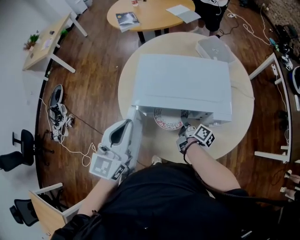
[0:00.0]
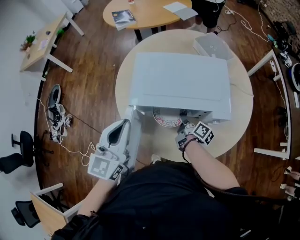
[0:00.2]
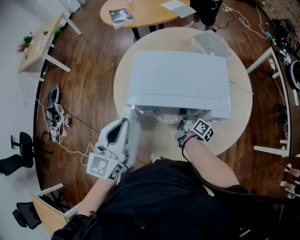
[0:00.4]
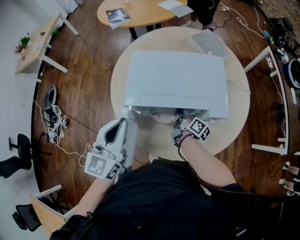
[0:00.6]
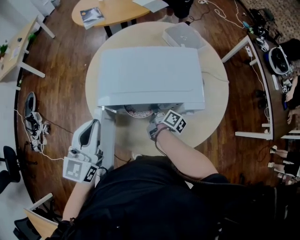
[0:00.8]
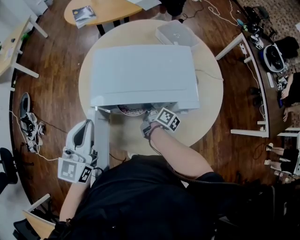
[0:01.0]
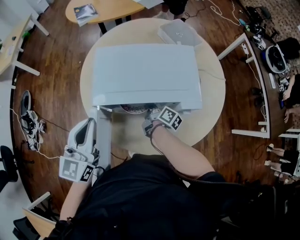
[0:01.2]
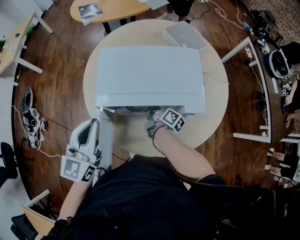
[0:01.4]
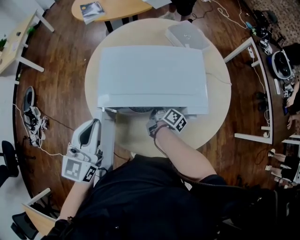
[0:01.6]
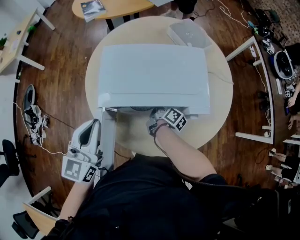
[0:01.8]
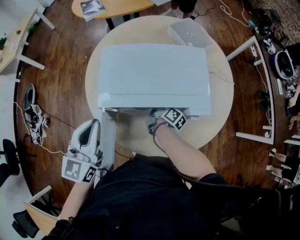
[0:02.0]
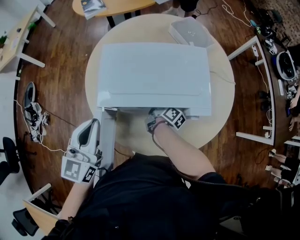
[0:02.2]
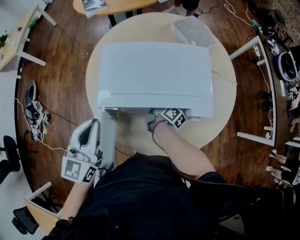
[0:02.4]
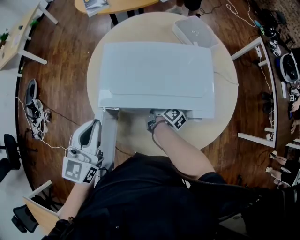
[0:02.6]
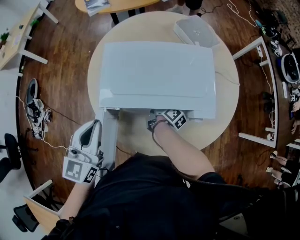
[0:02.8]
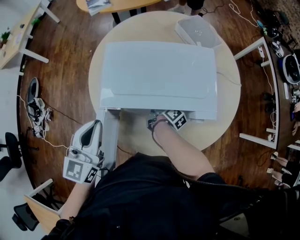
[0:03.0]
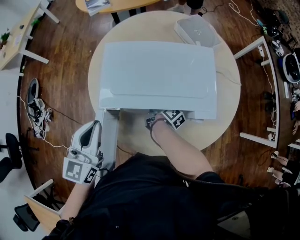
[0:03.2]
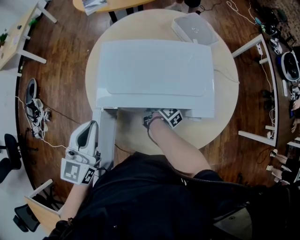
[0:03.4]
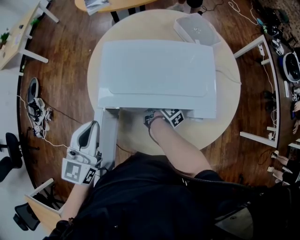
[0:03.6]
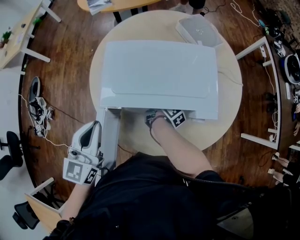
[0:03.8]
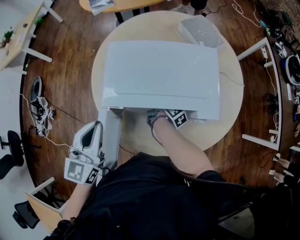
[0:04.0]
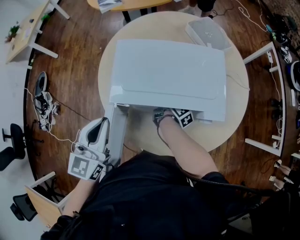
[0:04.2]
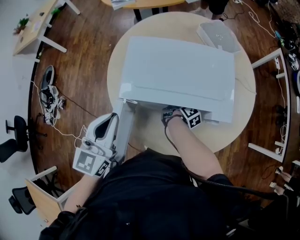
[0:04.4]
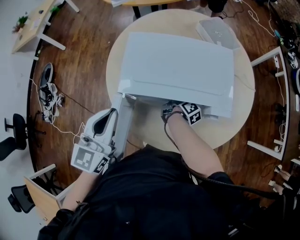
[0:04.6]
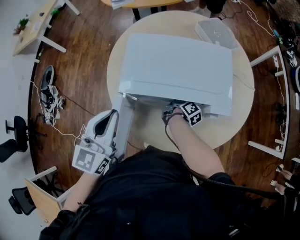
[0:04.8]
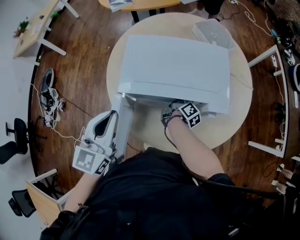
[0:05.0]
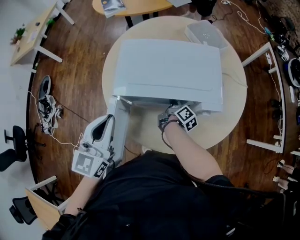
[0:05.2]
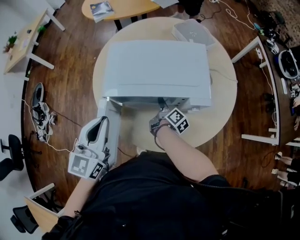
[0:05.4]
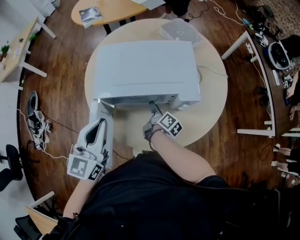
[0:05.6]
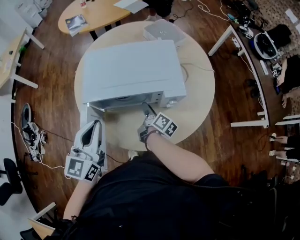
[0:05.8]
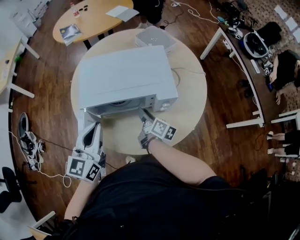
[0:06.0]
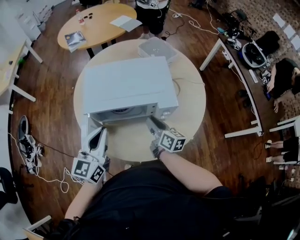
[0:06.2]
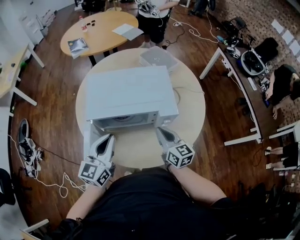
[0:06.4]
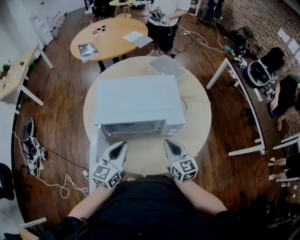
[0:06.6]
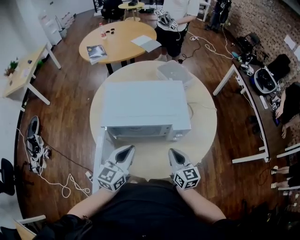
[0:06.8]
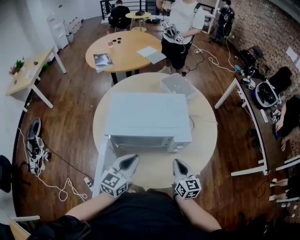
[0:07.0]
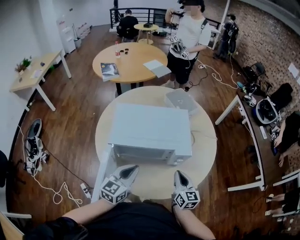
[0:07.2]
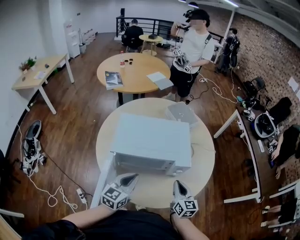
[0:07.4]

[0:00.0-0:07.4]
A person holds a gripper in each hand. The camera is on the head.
0:00.0 to 0:01.4: The grippers make only small movements.
0:01.4 to 0:04.4: There are only small adjustments of the grippers.
0:04.4 to 0:06.0: The left gripper travels to the right by about 10 cm. Meanwhile the right gripper is displaced backward and upward by roughly 15 cm, rotates some 20 degrees, and opens.
0:06.0 to 0:07.4: The right gripper goes some 15 cm to the right, backward and upward, rolls counterclockwise, seen from behind, by roughly 50 degrees, and closes its fingers. The left gripper is displaced downward and to the right by approximately 10 cm.

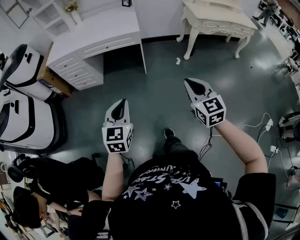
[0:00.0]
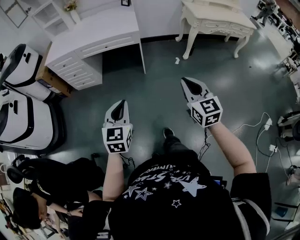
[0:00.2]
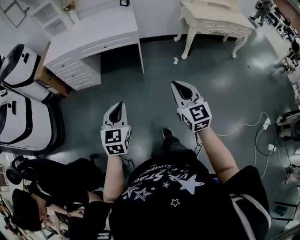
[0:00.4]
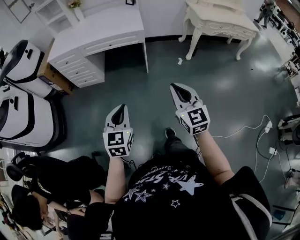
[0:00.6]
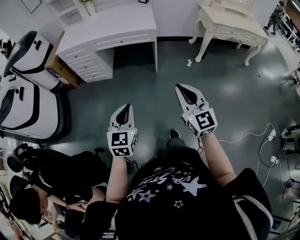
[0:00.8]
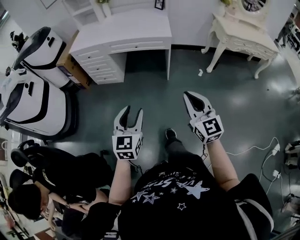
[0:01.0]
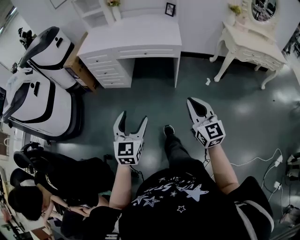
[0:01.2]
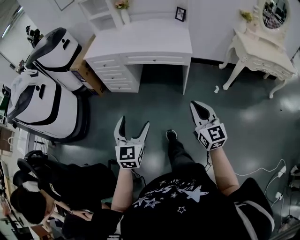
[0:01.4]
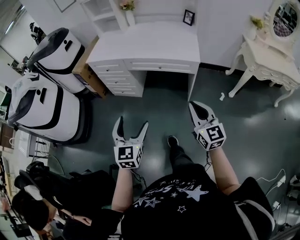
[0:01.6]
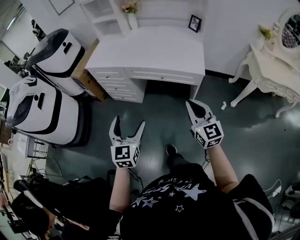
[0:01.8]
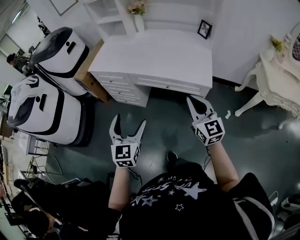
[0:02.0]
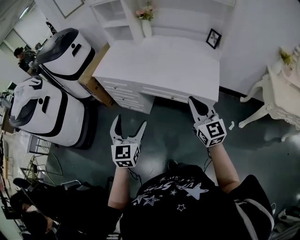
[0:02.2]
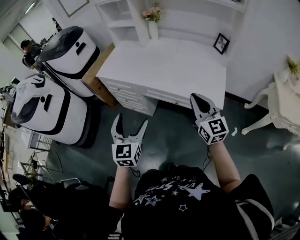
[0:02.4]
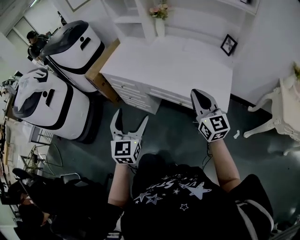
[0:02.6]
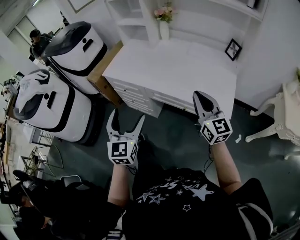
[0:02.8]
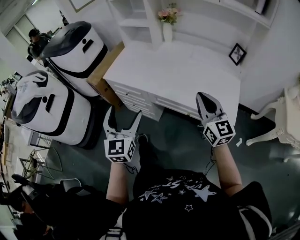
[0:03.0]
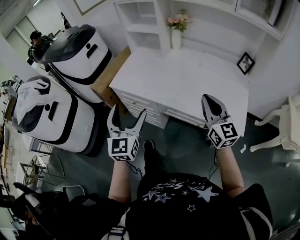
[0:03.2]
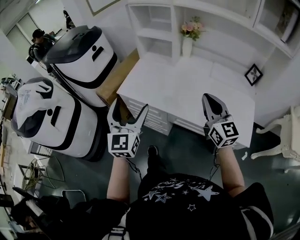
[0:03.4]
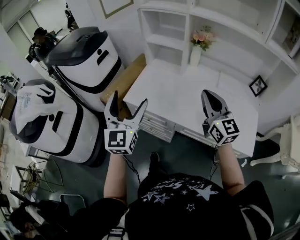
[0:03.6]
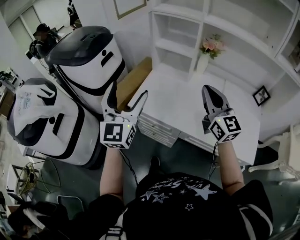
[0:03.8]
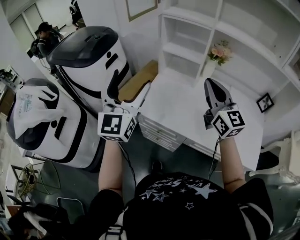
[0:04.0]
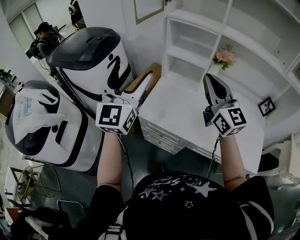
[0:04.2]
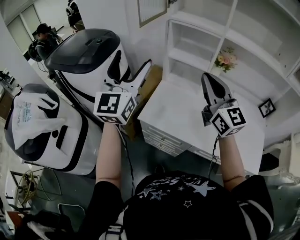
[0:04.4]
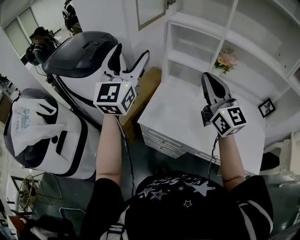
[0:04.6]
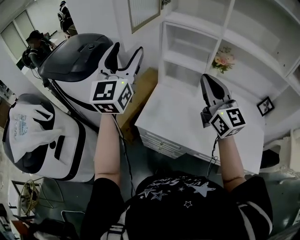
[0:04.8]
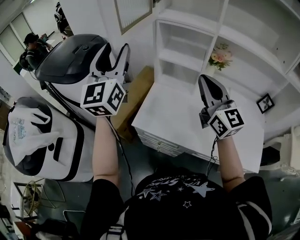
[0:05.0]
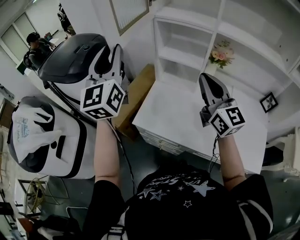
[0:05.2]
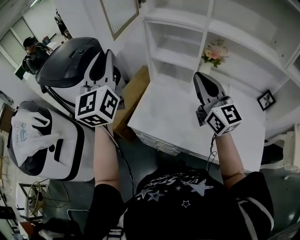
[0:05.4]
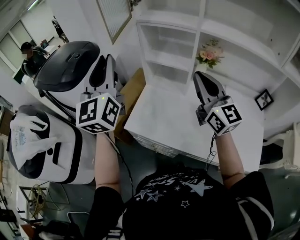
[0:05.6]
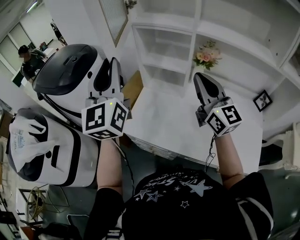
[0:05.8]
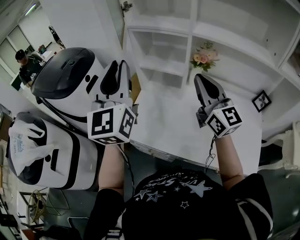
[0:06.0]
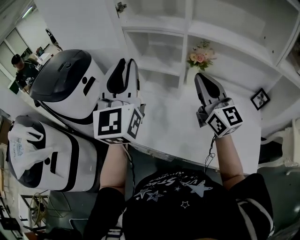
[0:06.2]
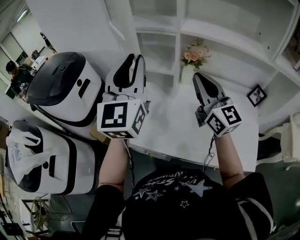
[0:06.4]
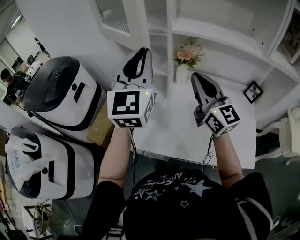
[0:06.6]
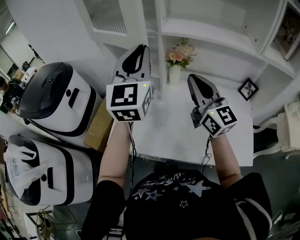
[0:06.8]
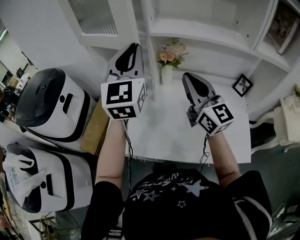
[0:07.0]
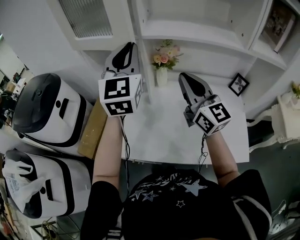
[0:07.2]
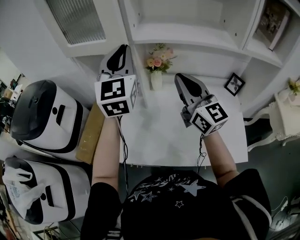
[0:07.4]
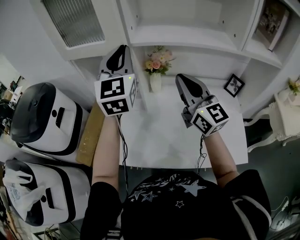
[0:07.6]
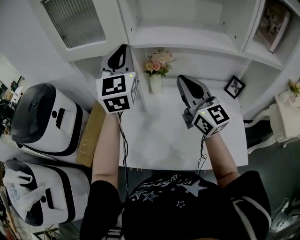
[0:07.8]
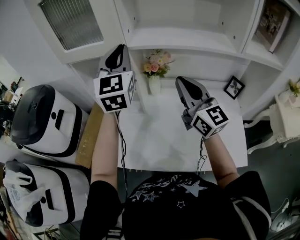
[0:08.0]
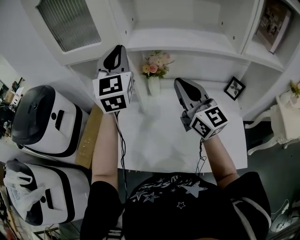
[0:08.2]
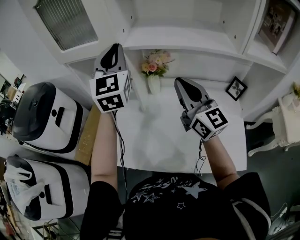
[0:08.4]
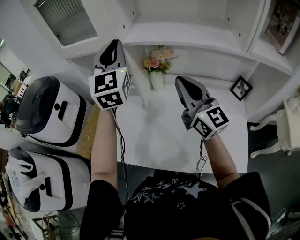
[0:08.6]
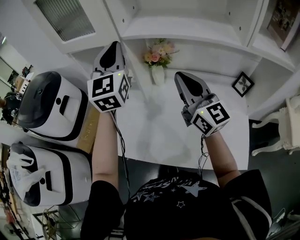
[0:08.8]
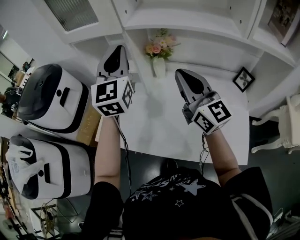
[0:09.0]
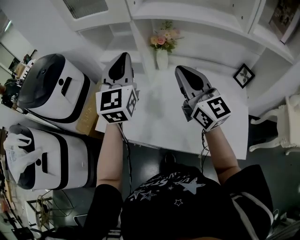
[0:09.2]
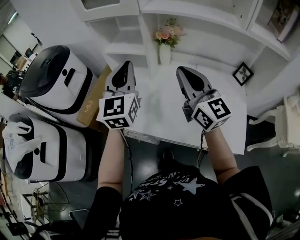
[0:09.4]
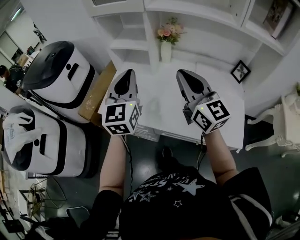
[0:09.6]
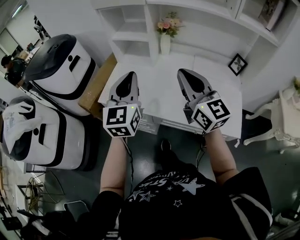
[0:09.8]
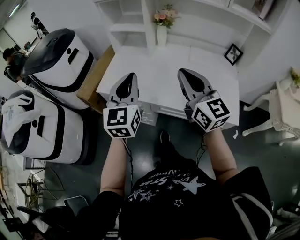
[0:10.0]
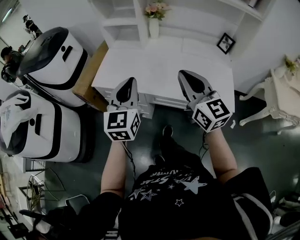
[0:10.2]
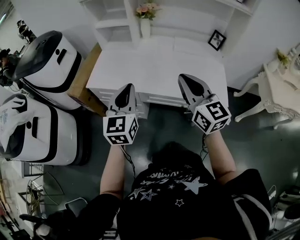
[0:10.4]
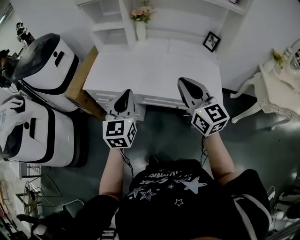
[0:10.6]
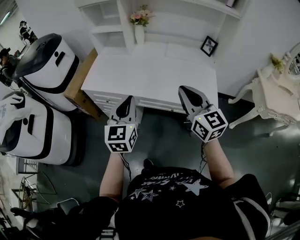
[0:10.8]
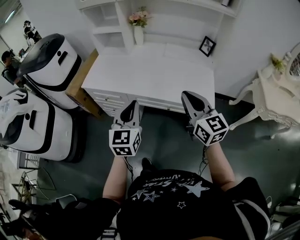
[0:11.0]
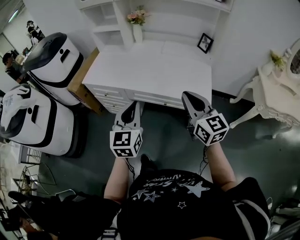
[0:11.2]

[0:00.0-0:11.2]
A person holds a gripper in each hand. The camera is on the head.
0:00.0 to 0:01.6: Both grippers travel together forward and to the left, roughly 30 cm. The right gripper rotates some 20 degrees, while the left gripper opens.
0:01.6 to 0:03.2: The two grippers travel together, forward, approximately 50 cm.
0:03.2 to 0:04.8: The pair of grippers is taken forward and to the left, approximately 40 cm. The two grippers go some 20 cm upward. The left gripper changes its angle by roughly 20 degrees.
0:04.8 to 0:06.4: Both grippers travel together to the right, about 20 cm. The left gripper closes its fingers.
0:06.4 to 0:08.0: The right gripper is displaced to the right by approximately 10 cm. Meanwhile the left gripper moves forward and to the right, roughly 20 cm.
0:08.0 to 0:09.6: The left gripper shifts about 30 cm backward and downward. The right gripper moves backward, approximately 15 cm.
0:09.6 to 0:11.2: The right gripper travels backward and to the right by roughly 40 cm. The left gripper moves backward, approximately 35 cm.

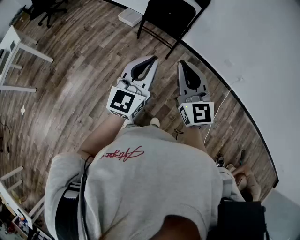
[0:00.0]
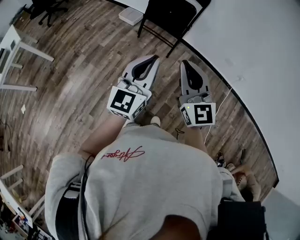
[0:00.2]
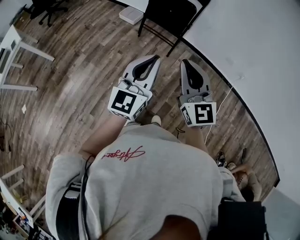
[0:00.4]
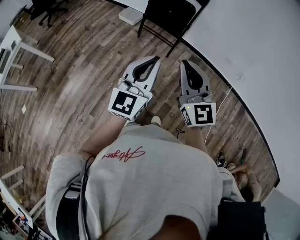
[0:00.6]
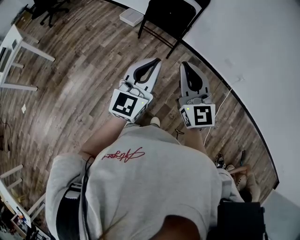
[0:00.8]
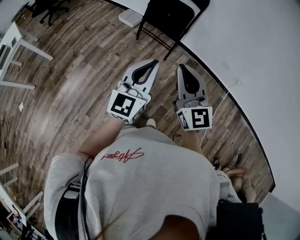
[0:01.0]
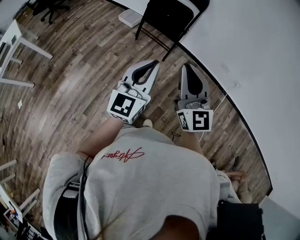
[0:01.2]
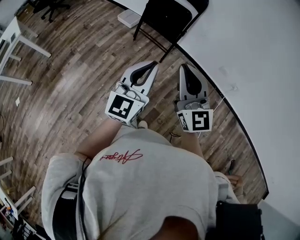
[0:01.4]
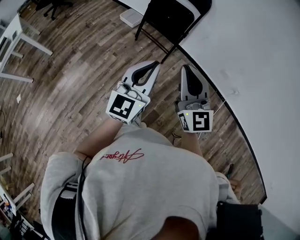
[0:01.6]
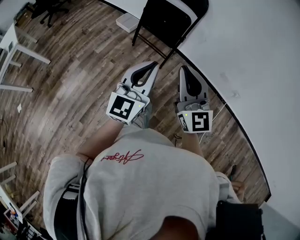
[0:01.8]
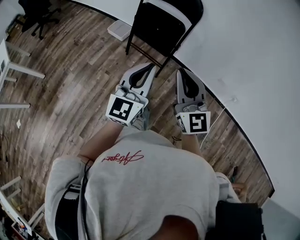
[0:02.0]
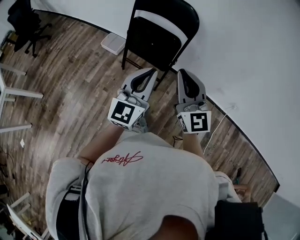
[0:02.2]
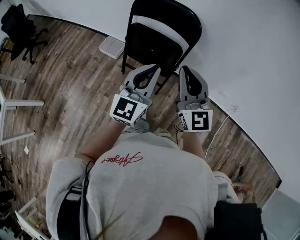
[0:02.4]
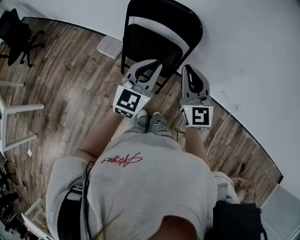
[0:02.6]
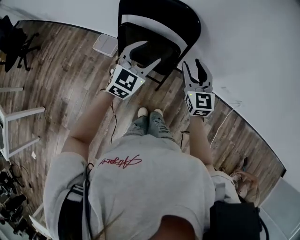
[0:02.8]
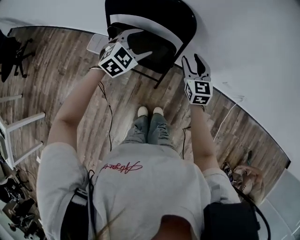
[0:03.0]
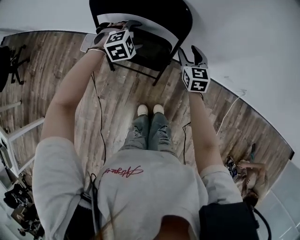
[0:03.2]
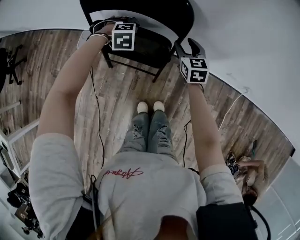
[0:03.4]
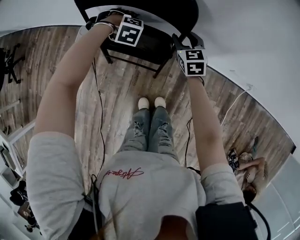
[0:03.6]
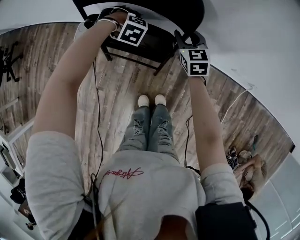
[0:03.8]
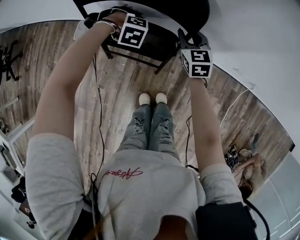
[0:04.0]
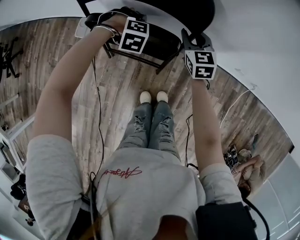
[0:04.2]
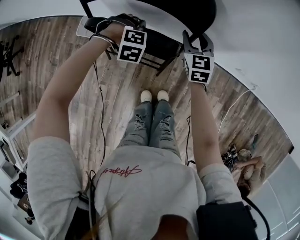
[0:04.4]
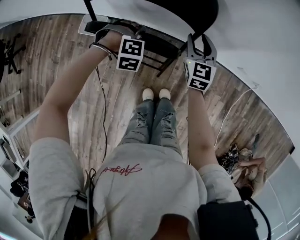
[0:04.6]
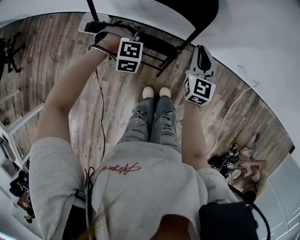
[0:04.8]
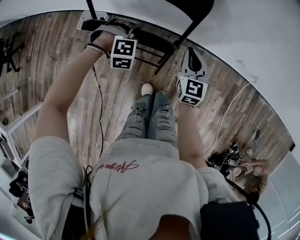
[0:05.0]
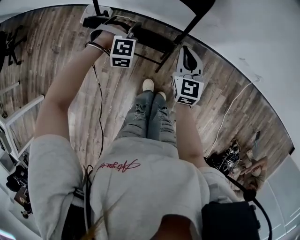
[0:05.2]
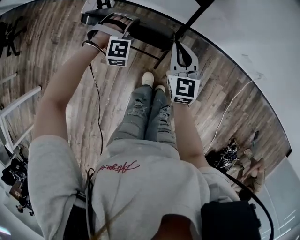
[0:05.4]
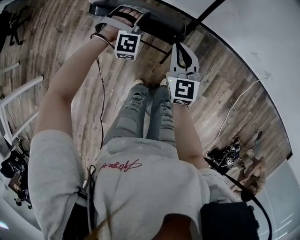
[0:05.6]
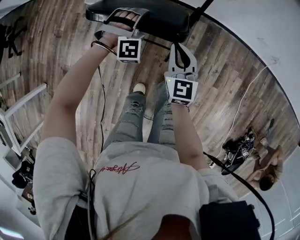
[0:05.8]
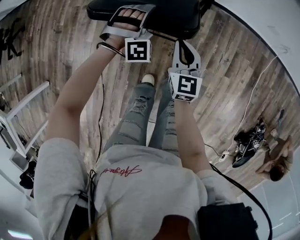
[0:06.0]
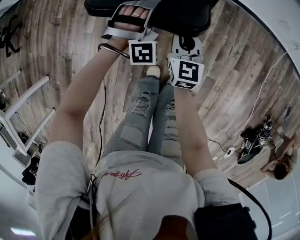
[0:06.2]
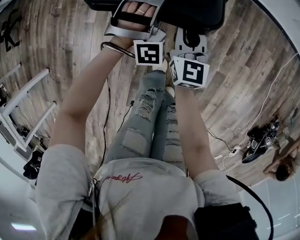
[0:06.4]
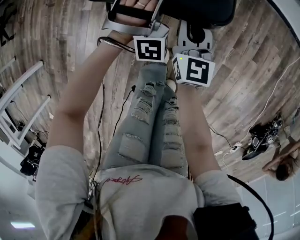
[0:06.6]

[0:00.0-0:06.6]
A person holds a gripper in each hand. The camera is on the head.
0:00.0 to 0:01.6: Both grippers move to the right, some 10 cm.
0:01.6 to 0:03.2: The two grippers travel together, some 60 cm. The left gripper angles its fingers downward, by approximately 60 degrees, and opens its fingers; the right gripper tips its fingers downward by roughly 30 degrees, and opens its fingers.
0:03.2 to 0:05.0: The left gripper travels downward by some 10 cm, changes its angle by approximately 30 degrees, and closes its fingers; the right gripper changes place by some 10 cm, and closes up.
0:05.0 to 0:06.6: The left gripper travels backward by about 25 cm, and angles its fingers upward, by roughly 50 degrees. The right gripper goes some 40 cm backward, to the left and downward.
